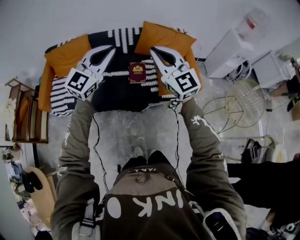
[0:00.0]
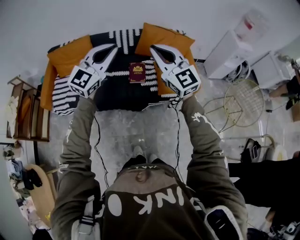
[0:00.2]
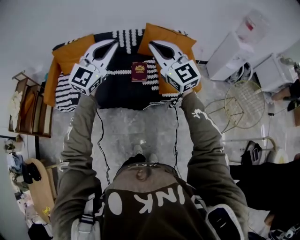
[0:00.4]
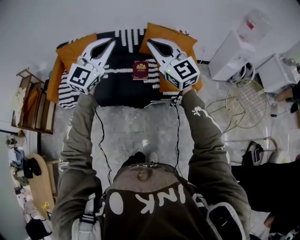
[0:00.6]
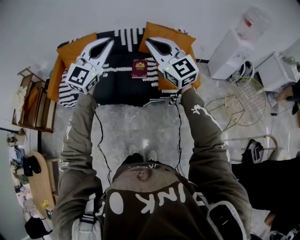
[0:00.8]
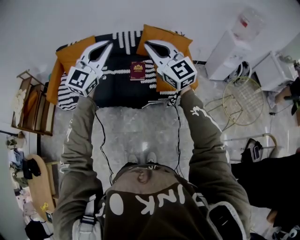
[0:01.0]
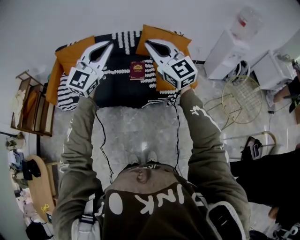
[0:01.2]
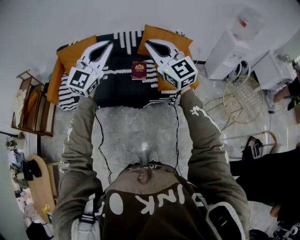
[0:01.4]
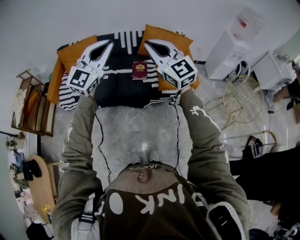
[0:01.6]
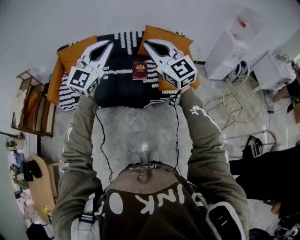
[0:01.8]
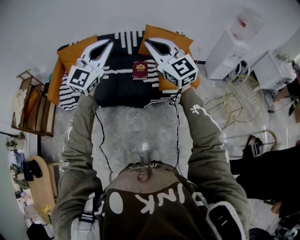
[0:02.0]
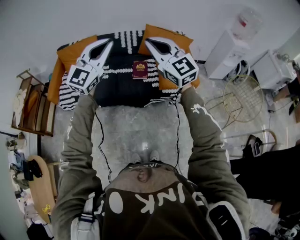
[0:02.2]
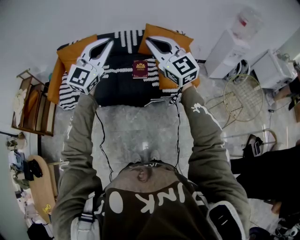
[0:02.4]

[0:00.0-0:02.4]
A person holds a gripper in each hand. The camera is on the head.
0:00.0 to 0:01.2: Both grippers move backward and upward, approximately 15 cm.
0:01.2 to 0:02.4: The grippers make only small movements.

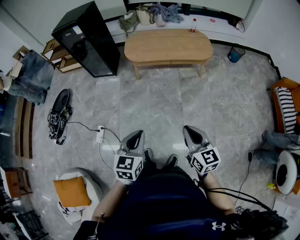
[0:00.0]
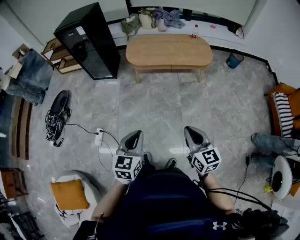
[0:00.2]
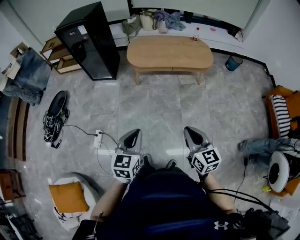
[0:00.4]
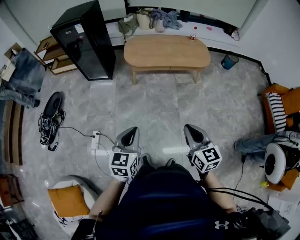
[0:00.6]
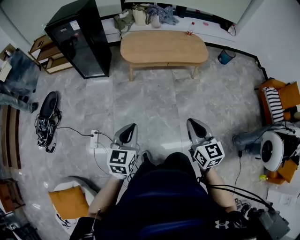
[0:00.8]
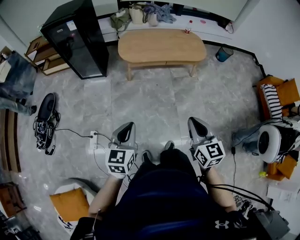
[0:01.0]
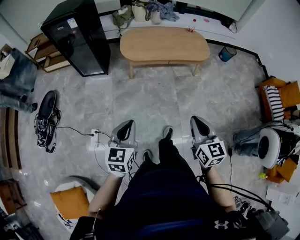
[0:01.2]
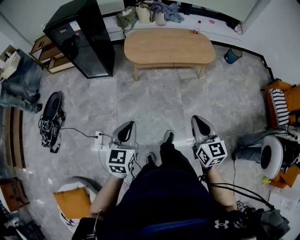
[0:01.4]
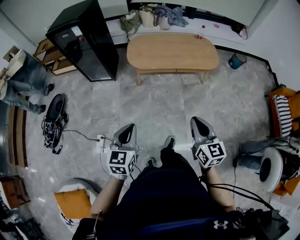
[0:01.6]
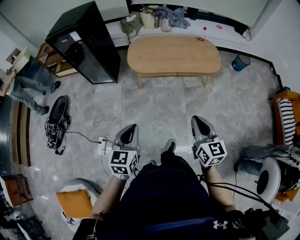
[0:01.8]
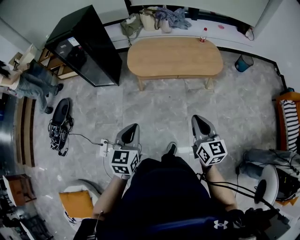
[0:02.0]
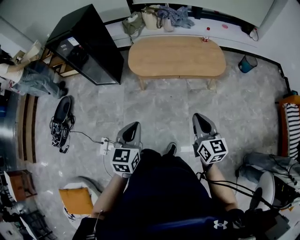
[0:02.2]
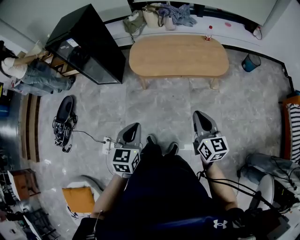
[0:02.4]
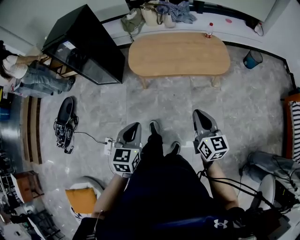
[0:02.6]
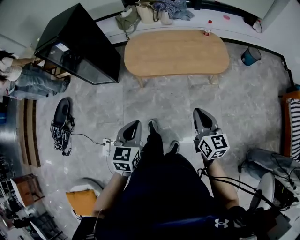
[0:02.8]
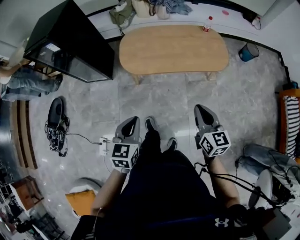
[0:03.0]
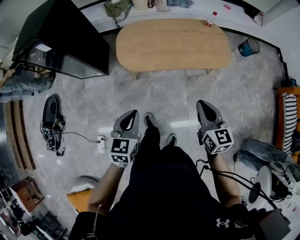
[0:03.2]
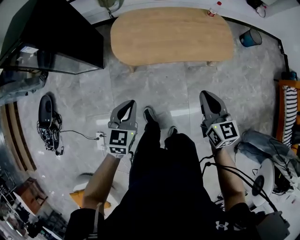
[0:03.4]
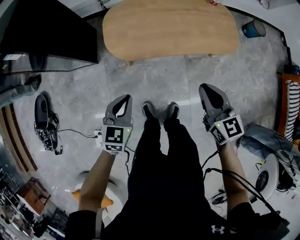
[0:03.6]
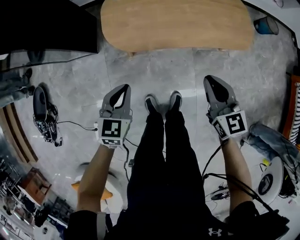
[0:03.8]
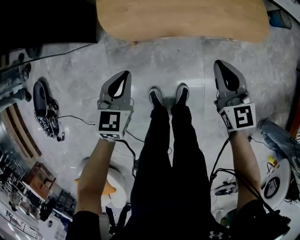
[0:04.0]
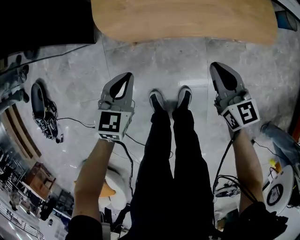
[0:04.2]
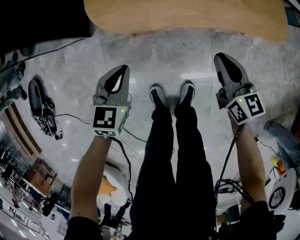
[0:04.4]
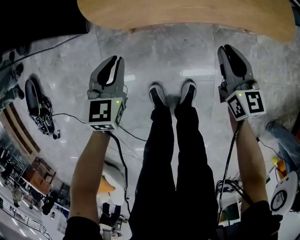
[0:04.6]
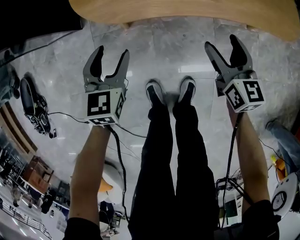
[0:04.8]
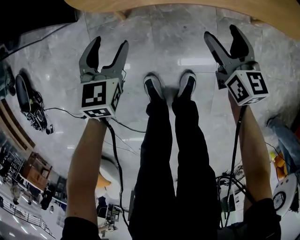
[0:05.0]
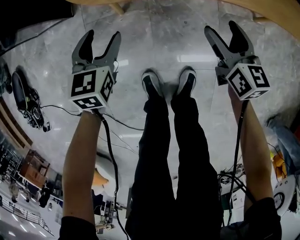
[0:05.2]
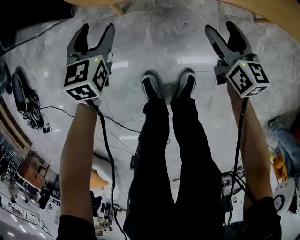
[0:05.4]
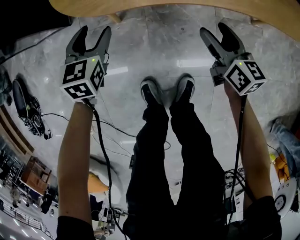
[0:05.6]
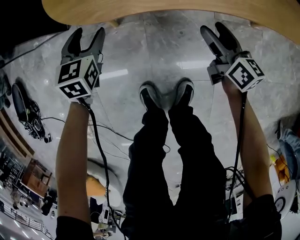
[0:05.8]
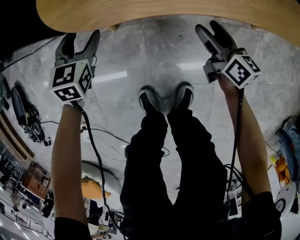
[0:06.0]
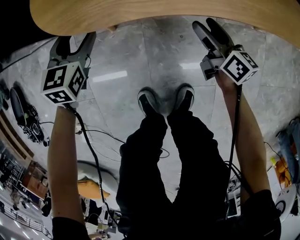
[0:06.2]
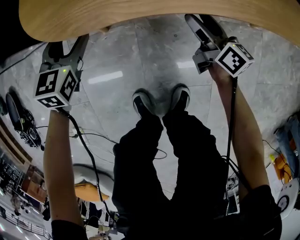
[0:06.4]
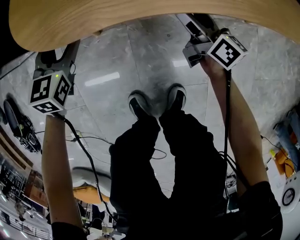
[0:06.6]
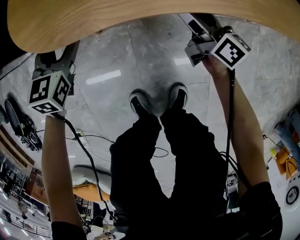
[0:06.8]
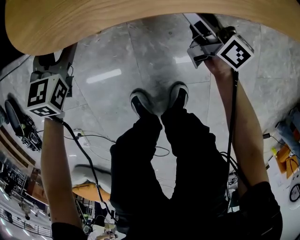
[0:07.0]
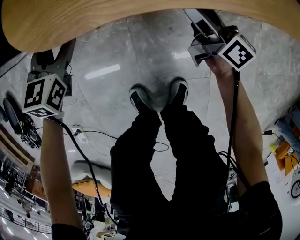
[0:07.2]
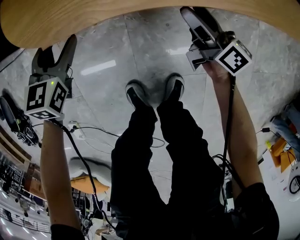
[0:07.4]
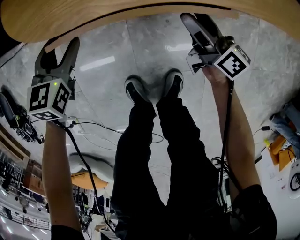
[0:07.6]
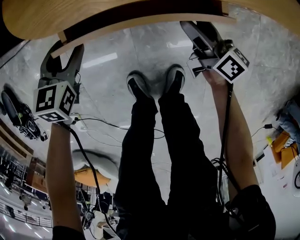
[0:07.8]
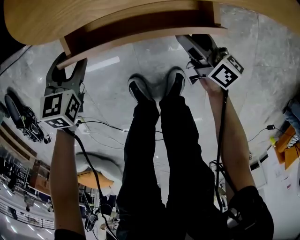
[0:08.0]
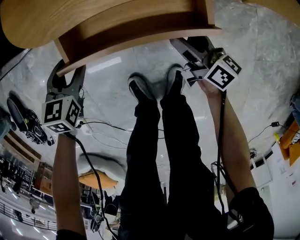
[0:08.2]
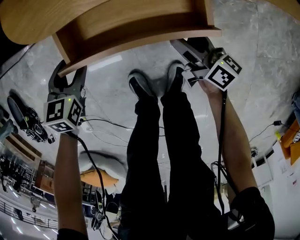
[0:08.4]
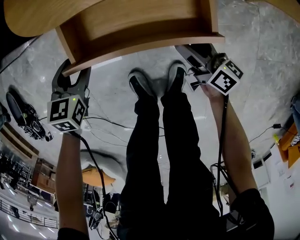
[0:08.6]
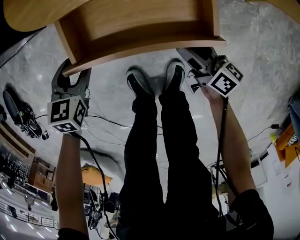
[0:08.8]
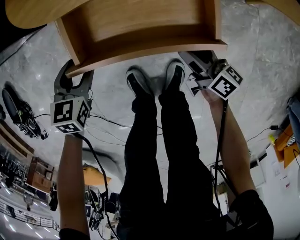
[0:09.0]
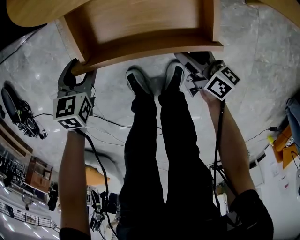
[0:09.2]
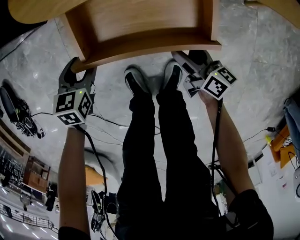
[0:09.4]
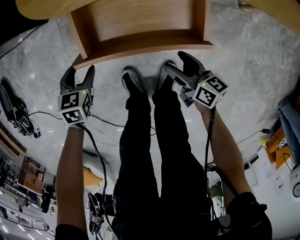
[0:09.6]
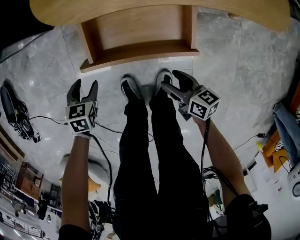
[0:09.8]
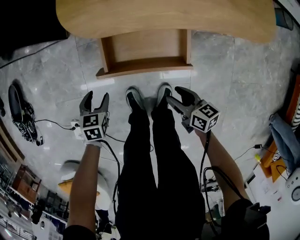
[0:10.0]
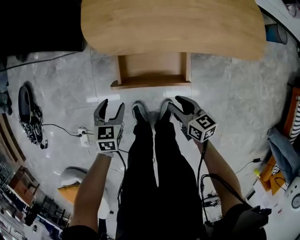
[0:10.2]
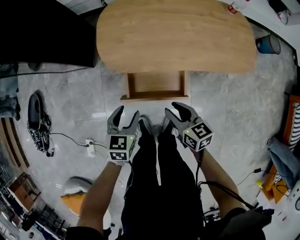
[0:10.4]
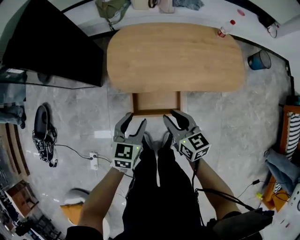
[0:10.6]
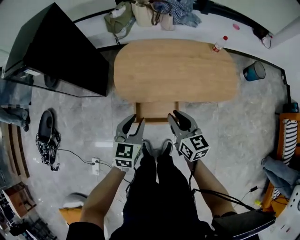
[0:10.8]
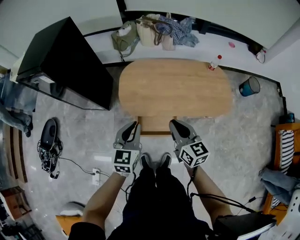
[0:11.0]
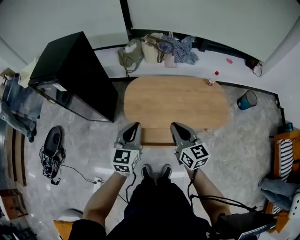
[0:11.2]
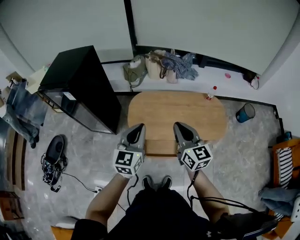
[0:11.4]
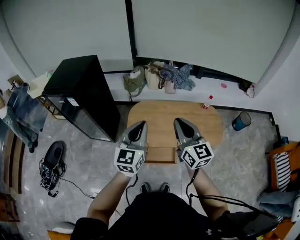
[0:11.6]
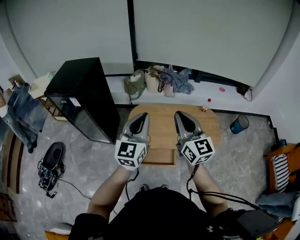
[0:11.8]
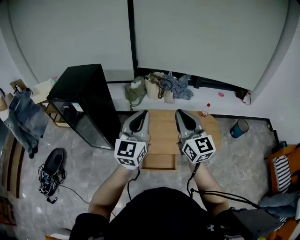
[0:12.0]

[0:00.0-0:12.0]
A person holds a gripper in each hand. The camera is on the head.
0:00.0 to 0:01.6: The grippers both shift forward and to the left by about 20 cm.
0:01.6 to 0:03.0: Both grippers travel together forward, some 25 cm.
0:03.0 to 0:04.4: Both grippers move downward and forward, some 40 cm.
0:04.4 to 0:06.0: The left gripper moves downward and forward, some 25 cm, and opens up, while the right gripper moves downward, approximately 25 cm, rotates approximately 20 degrees, and opens.
0:07.6 to 0:09.0: Both grippers move backward, approximately 15 cm.
0:09.0 to 0:10.4: Both grippers travel together upward, roughly 30 cm. The right gripper changes its angle by about 30 degrees, and closes up.
0:10.4 to 0:12.0: Both grippers travel together upward, roughly 60 cm. The right gripper angles its fingers upward, by roughly 40 degrees, and closes; the left gripper points its fingers about 60 degrees further upward, and closes up.

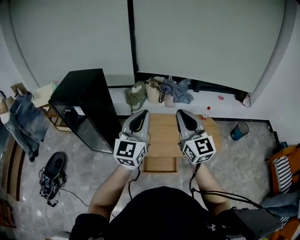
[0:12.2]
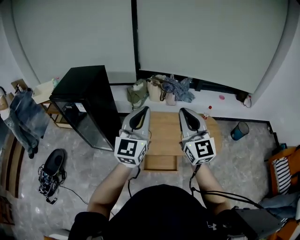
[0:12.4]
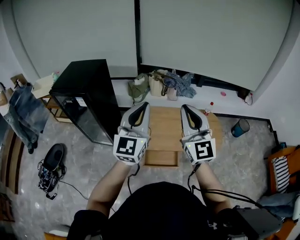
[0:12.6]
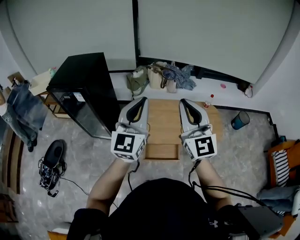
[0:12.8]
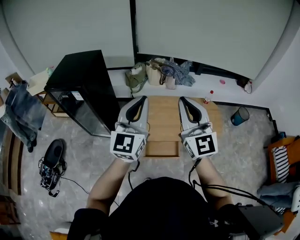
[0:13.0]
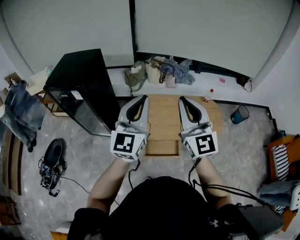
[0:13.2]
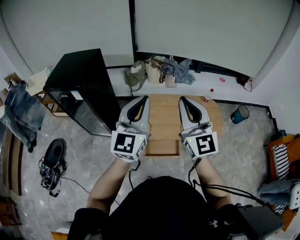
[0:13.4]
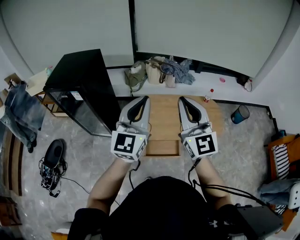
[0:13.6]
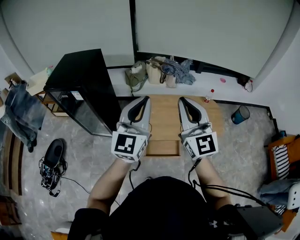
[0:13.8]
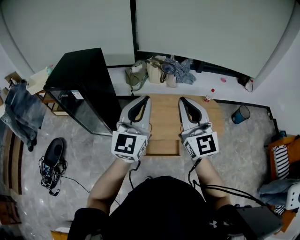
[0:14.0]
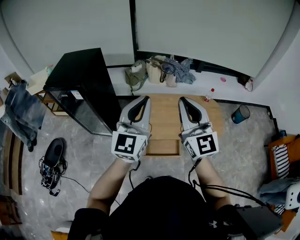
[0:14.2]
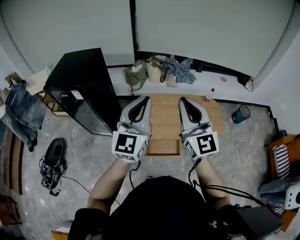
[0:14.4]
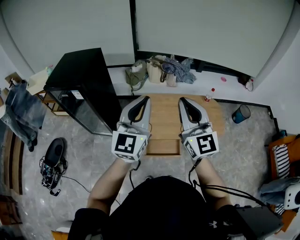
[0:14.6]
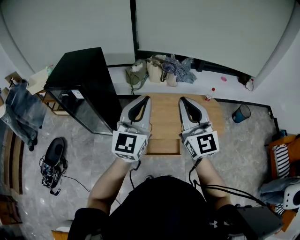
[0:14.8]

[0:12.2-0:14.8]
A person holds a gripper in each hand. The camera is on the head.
0:12.2 to 0:13.4: The grippers stay close to where they were, moving slightly.
0:13.4 to 0:14.8: Neither gripper changes place.

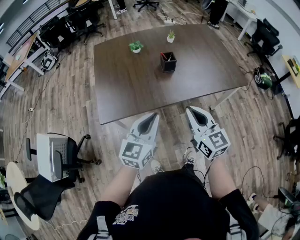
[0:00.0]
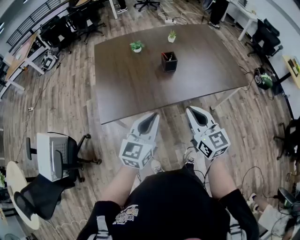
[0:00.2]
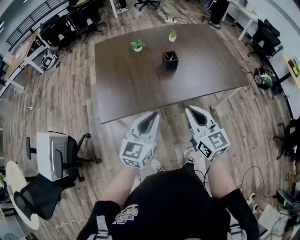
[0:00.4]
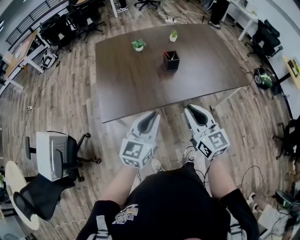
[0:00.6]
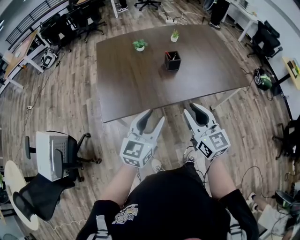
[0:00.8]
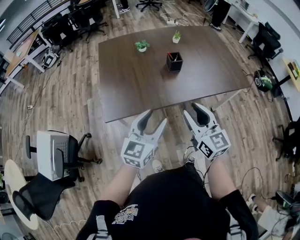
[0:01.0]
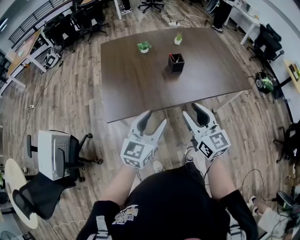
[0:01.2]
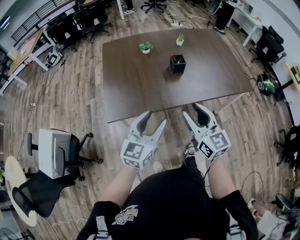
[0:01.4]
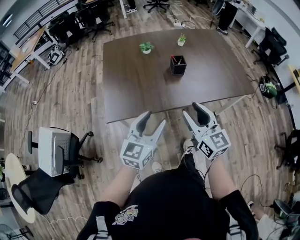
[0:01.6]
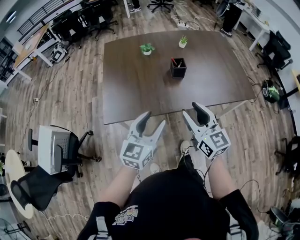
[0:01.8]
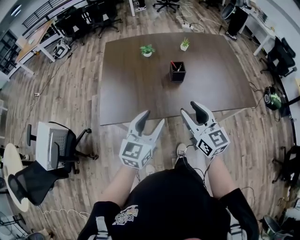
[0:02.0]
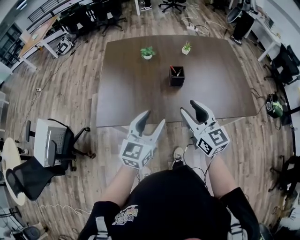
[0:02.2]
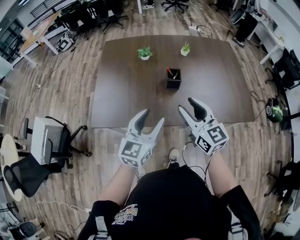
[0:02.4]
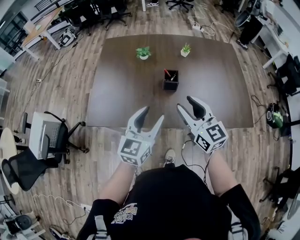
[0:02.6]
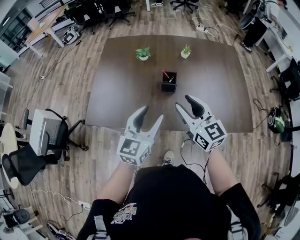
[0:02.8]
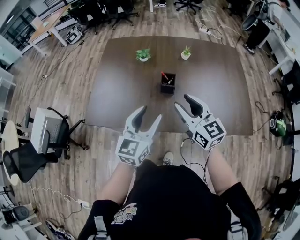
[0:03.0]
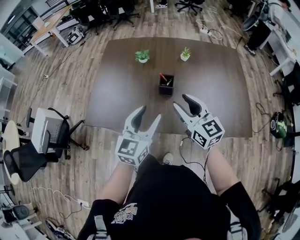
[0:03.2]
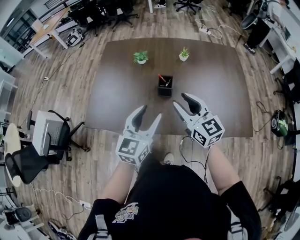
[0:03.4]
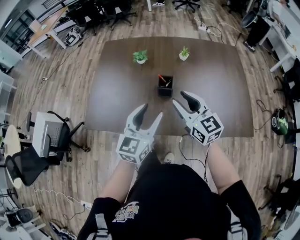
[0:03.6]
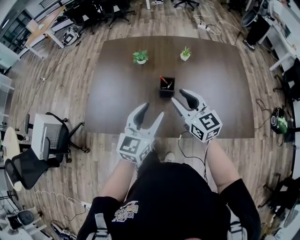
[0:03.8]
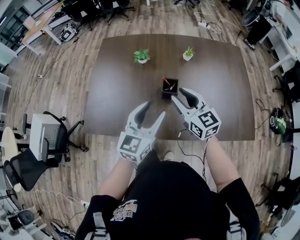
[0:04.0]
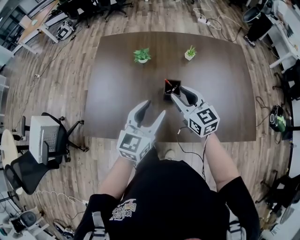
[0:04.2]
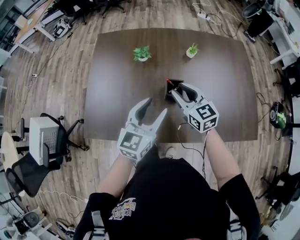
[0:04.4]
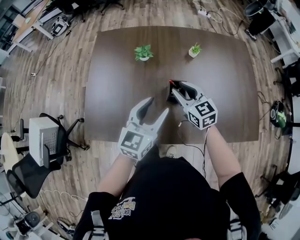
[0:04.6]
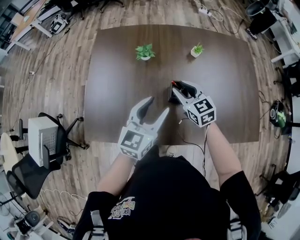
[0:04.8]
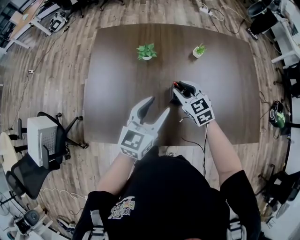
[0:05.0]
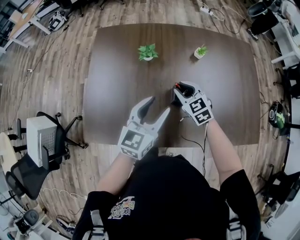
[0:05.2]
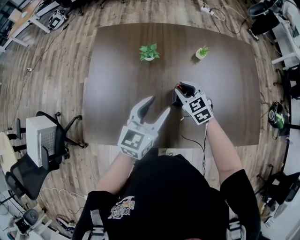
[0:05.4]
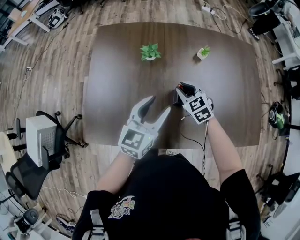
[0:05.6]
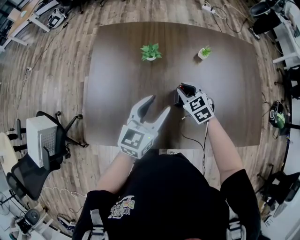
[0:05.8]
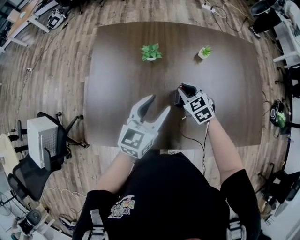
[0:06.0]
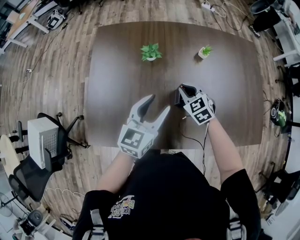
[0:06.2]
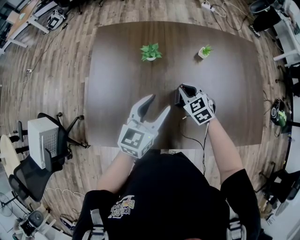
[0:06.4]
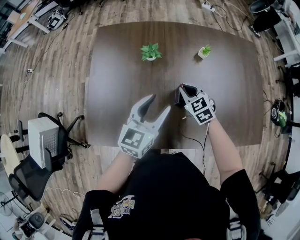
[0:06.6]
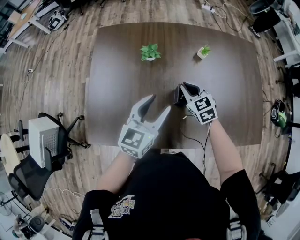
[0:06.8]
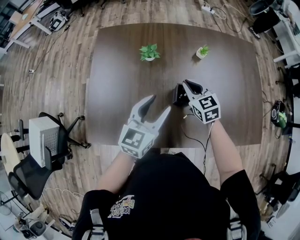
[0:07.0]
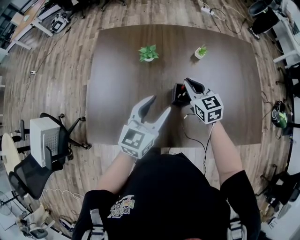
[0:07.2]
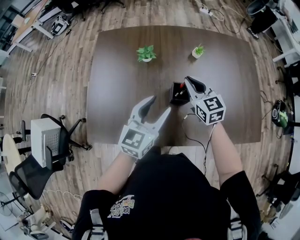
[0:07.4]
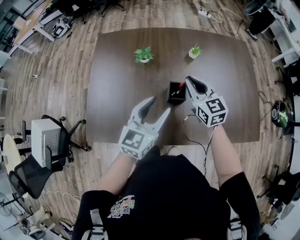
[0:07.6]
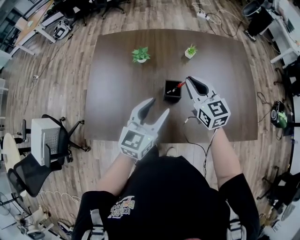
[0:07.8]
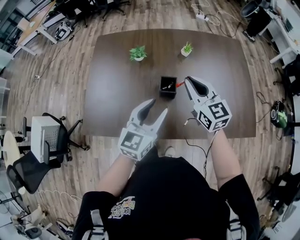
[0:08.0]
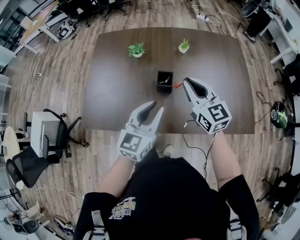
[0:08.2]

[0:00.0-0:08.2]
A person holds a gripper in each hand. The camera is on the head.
0:00.0 to 0:01.6: The right gripper opens its fingers. The left gripper opens up.
0:01.6 to 0:03.2: The left gripper shifts roughly 25 cm to the right and forward. Meanwhile the right gripper heads forward and to the right, covering roughly 25 cm, and swivels some 20 degrees.
0:03.2 to 0:05.0: The right gripper travels forward and downward by approximately 25 cm, and swivels roughly 30 degrees; the left gripper is displaced forward by about 20 cm.
0:05.0 to 0:06.6: The right gripper shifts by approximately 5 cm, and closes up.
0:06.6 to 0:08.2: The right gripper goes about 25 cm upward, backward and to the right, and angles its fingers upward, by approximately 30 degrees, while the left gripper heads backward and to the right, covering approximately 20 cm, and closes its fingers.
